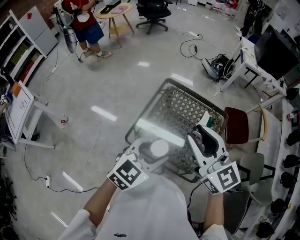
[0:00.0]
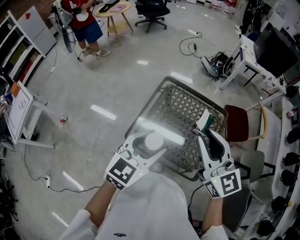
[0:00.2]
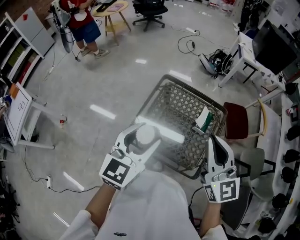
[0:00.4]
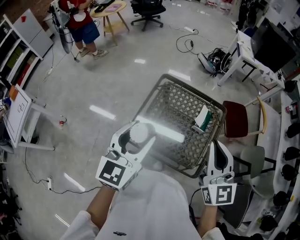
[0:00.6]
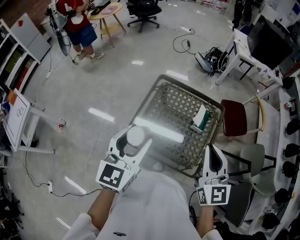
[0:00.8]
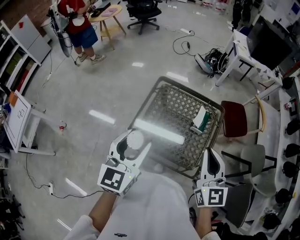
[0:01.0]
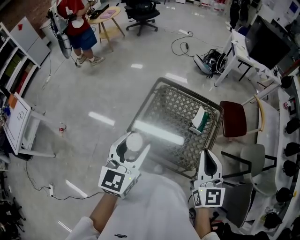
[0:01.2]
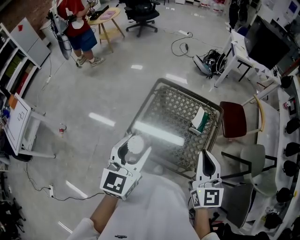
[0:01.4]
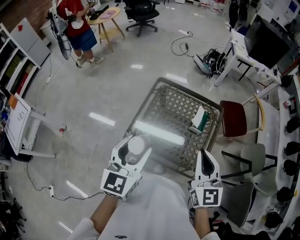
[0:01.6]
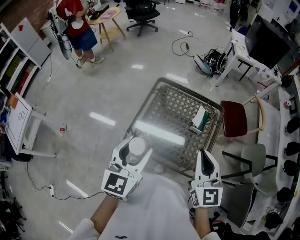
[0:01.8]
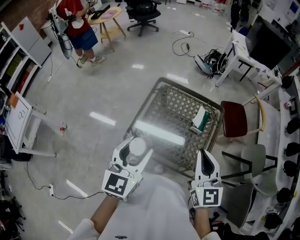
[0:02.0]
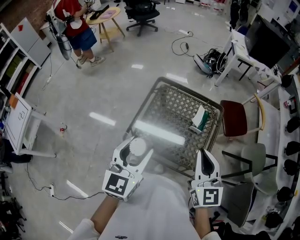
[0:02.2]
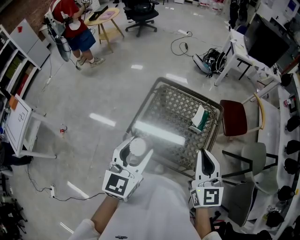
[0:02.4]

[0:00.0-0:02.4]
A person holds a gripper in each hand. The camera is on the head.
0:00.0 to 0:01.2: The right gripper is displaced to the right, downward and backward by approximately 15 cm, swivels approximately 30 degrees, and closes up, while the left gripper goes roughly 5 cm to the left, and swivels about 30 degrees.
0:01.2 to 0:02.4: The grippers make only small movements.

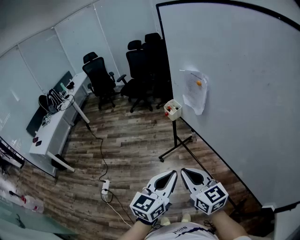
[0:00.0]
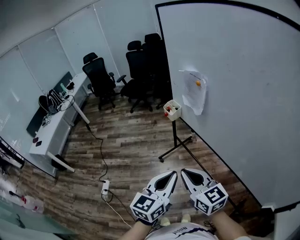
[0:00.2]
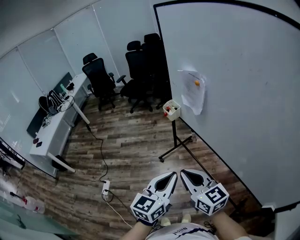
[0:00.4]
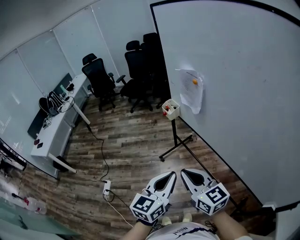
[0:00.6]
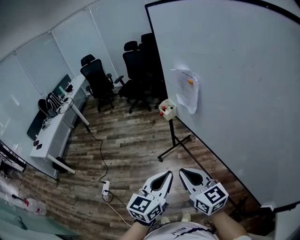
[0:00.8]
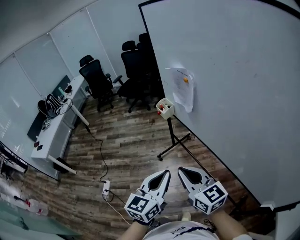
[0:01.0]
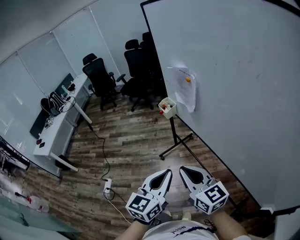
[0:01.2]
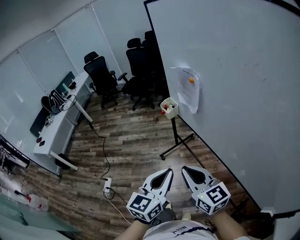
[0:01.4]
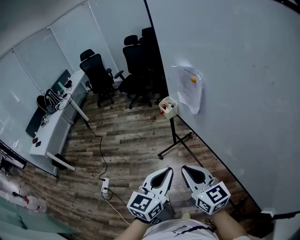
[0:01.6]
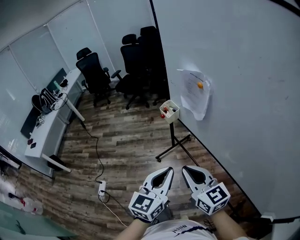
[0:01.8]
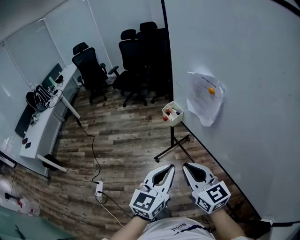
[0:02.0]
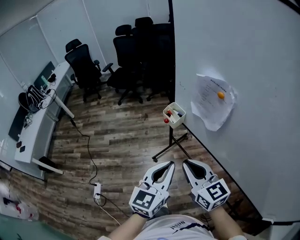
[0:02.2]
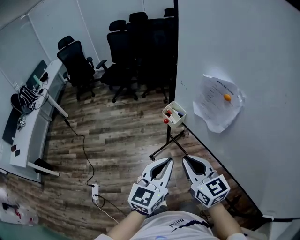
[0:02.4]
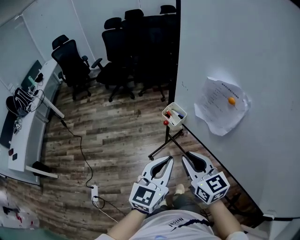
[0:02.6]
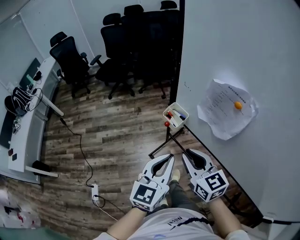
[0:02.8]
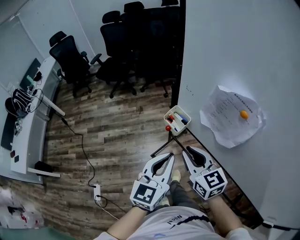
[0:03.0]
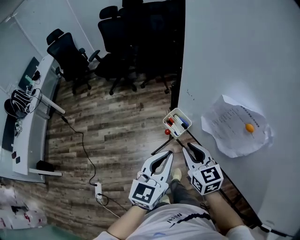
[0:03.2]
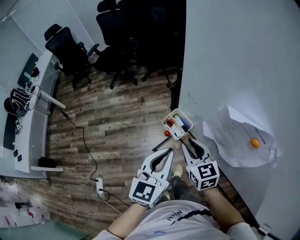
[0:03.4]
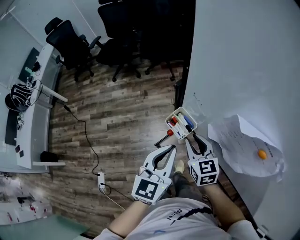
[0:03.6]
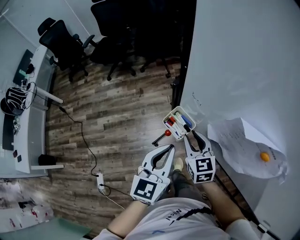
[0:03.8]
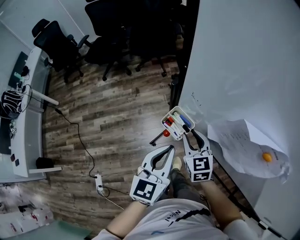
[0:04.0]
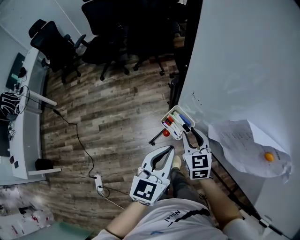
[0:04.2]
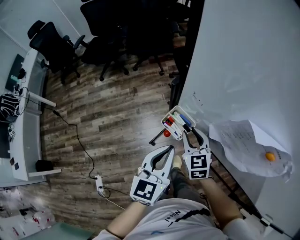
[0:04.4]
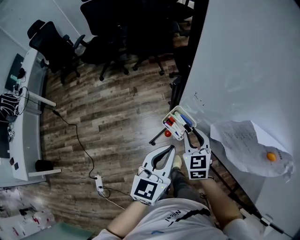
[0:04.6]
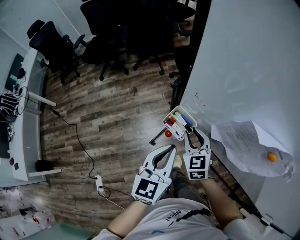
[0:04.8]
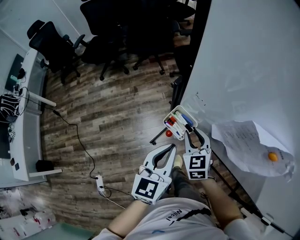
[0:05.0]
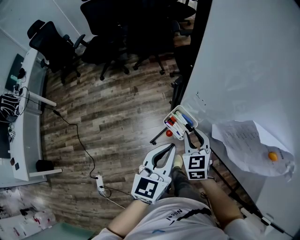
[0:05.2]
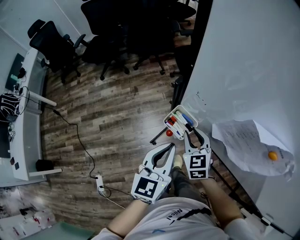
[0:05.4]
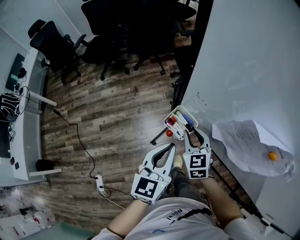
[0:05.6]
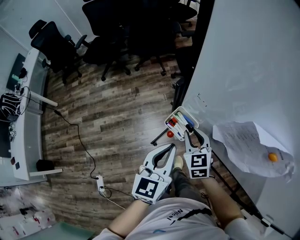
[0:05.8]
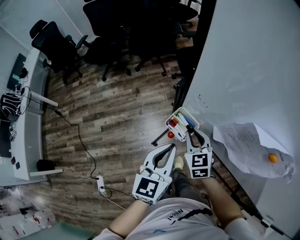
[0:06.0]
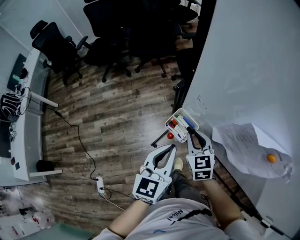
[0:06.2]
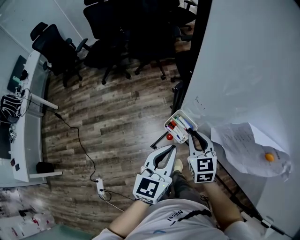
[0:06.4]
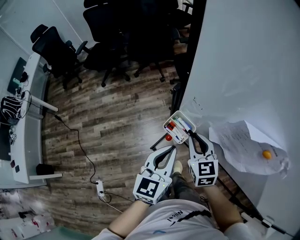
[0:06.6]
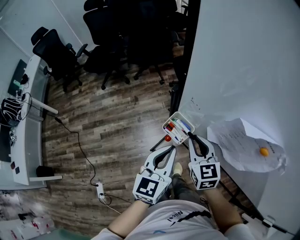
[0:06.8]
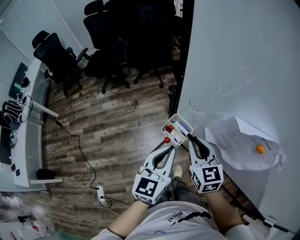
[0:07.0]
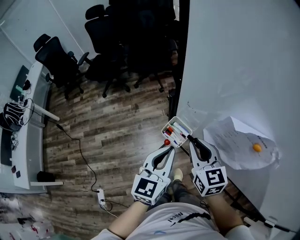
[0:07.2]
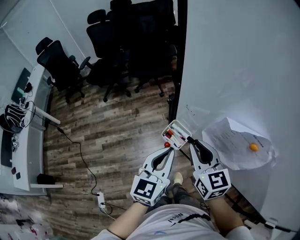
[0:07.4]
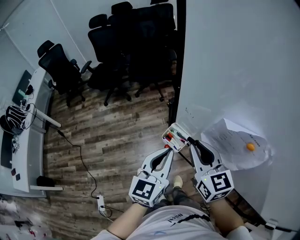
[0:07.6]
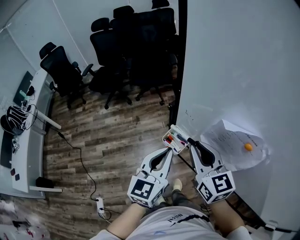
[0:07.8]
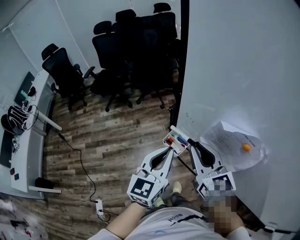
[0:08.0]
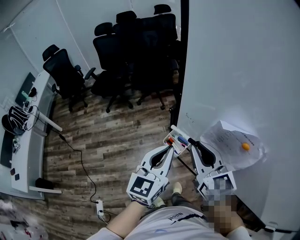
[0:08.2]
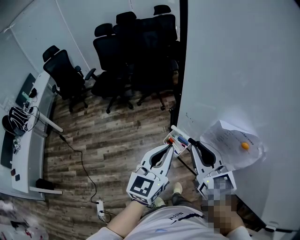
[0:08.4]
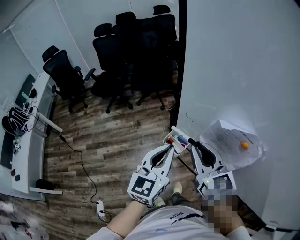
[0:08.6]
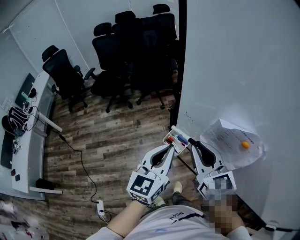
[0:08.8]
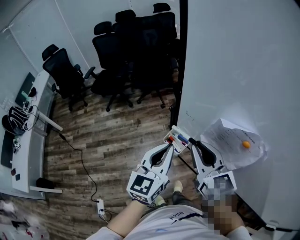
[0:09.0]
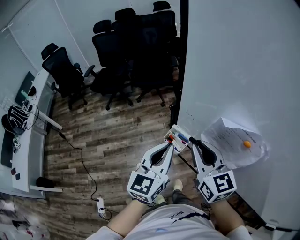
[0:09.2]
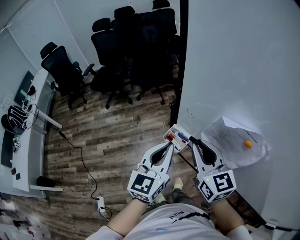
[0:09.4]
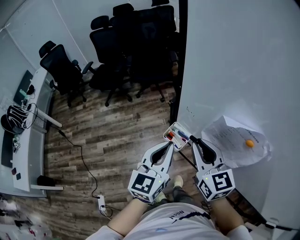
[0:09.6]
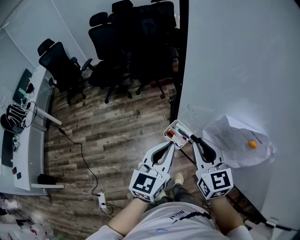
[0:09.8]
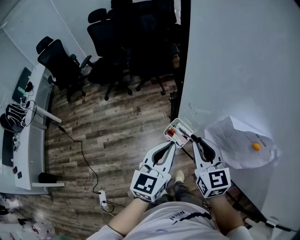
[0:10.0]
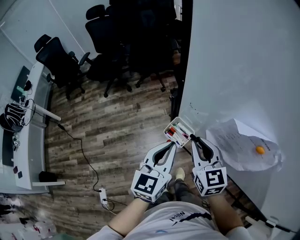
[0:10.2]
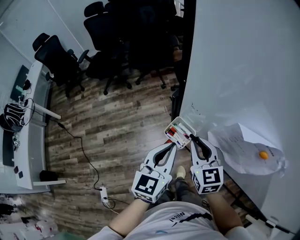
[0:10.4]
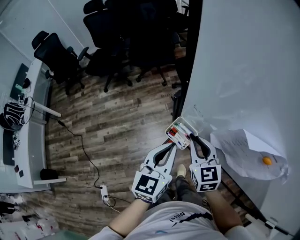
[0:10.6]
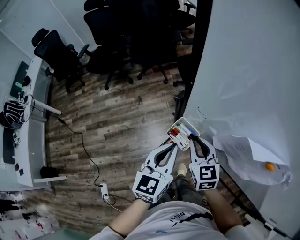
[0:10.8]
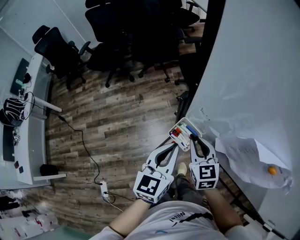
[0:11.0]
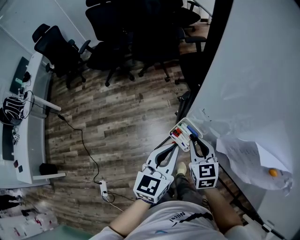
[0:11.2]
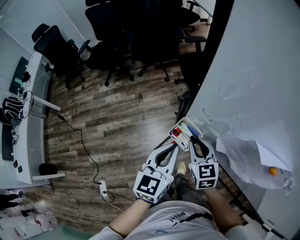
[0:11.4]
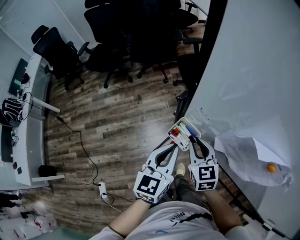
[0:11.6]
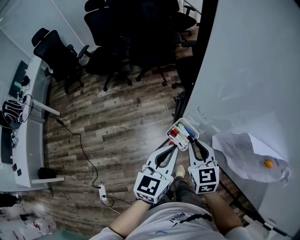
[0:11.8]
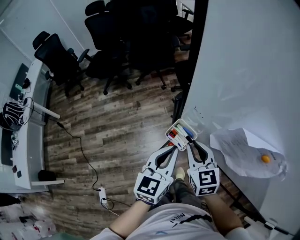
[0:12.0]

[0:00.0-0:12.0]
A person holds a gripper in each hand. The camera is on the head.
0:00.0 to 0:01.6: The left gripper moves approximately 5 cm; the right gripper ends up some 5 cm from where it was.
0:01.6 to 0:03.0: The two grippers go roughly 35 cm forward.
0:03.0 to 0:04.4: The right gripper goes some 20 cm forward and downward, and turns by about 20 degrees. The left gripper goes some 15 cm forward and downward.
0:04.4 to 0:06.0: The grippers make only small movements.
0:06.0 to 0:07.6: The left gripper shifts roughly 5 cm upward. Meanwhile the right gripper heads upward, covering about 20 cm, and rotates roughly 20 degrees.
0:07.6 to 0:09.0: The grippers make only small movements.
0:09.0 to 0:10.4: The right gripper moves downward, approximately 15 cm, while the left gripper goes approximately 10 cm downward.
0:10.4 to 0:12.0: The right gripper travels downward and back again, some 10 cm each way.

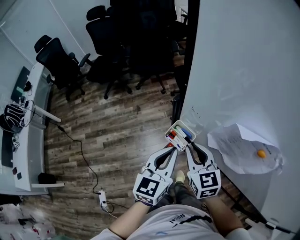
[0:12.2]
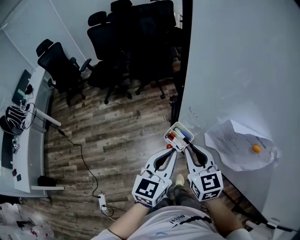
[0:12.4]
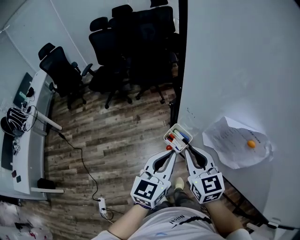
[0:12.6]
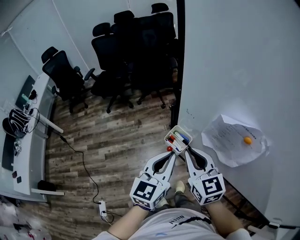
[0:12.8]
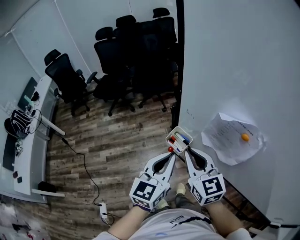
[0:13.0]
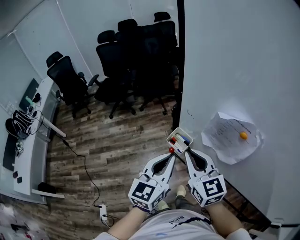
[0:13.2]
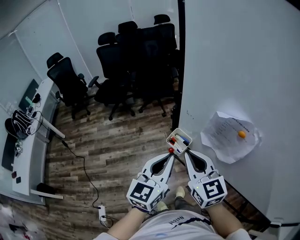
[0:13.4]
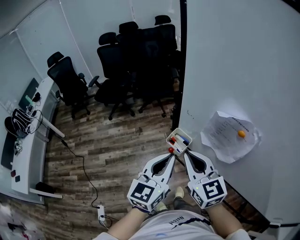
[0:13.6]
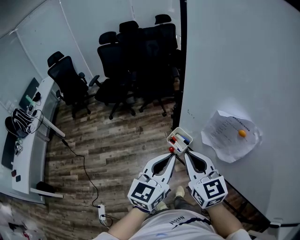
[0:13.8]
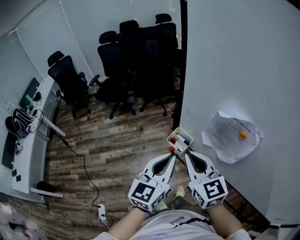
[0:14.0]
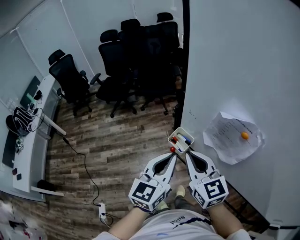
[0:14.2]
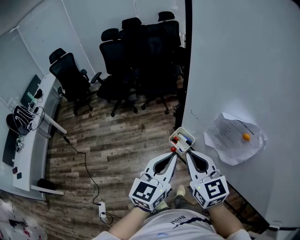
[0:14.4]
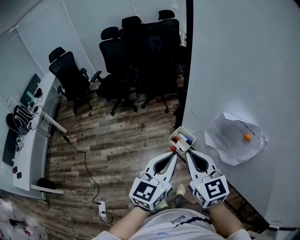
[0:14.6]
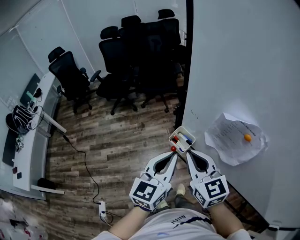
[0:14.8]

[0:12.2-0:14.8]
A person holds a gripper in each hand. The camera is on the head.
0:12.2 to 0:13.4: The two grippers go roughly 15 cm upward and backward.
0:13.4 to 0:14.8: The grippers move only a little.

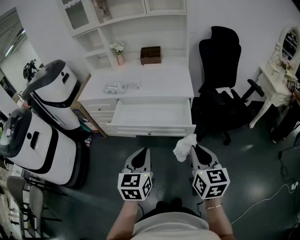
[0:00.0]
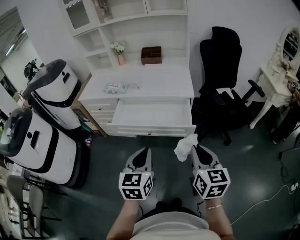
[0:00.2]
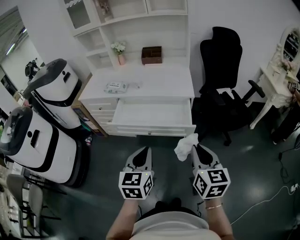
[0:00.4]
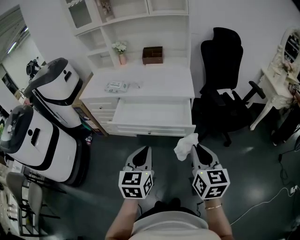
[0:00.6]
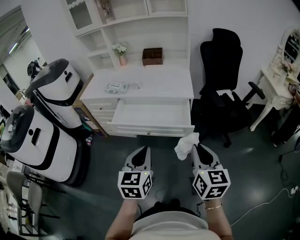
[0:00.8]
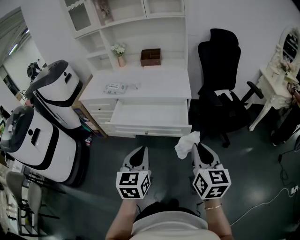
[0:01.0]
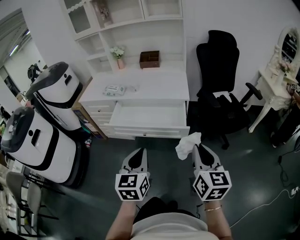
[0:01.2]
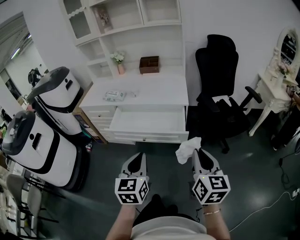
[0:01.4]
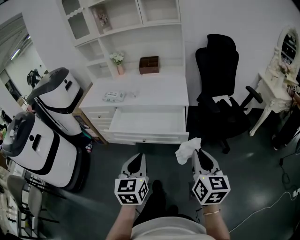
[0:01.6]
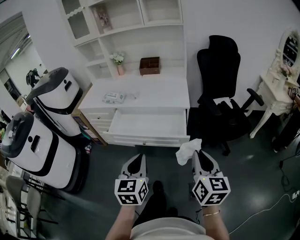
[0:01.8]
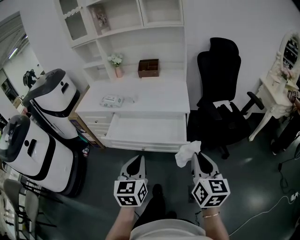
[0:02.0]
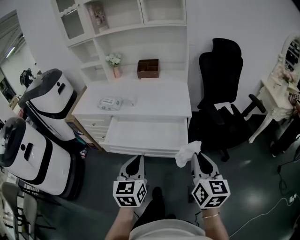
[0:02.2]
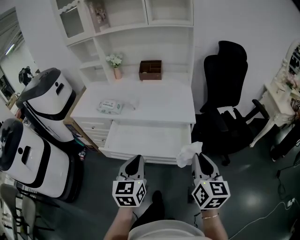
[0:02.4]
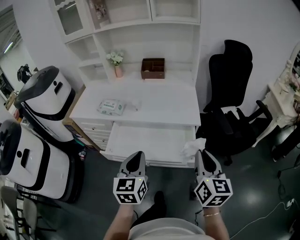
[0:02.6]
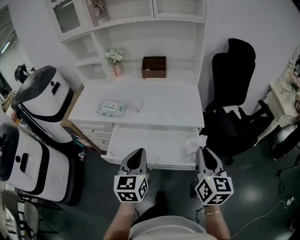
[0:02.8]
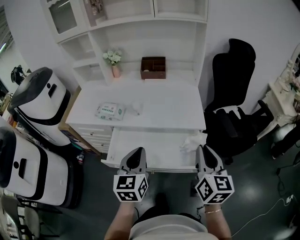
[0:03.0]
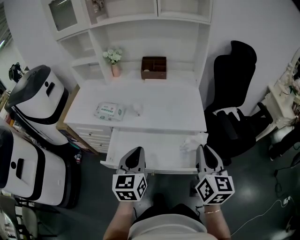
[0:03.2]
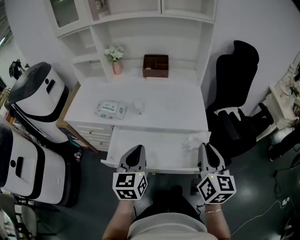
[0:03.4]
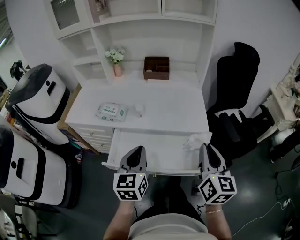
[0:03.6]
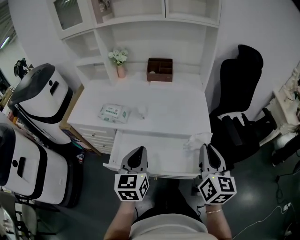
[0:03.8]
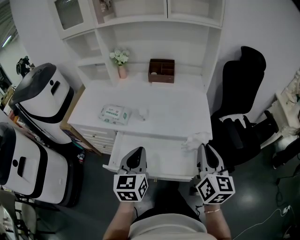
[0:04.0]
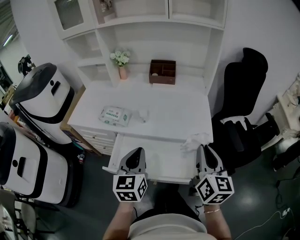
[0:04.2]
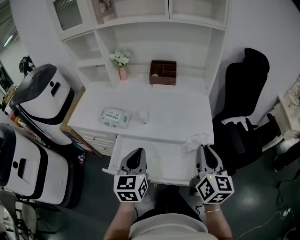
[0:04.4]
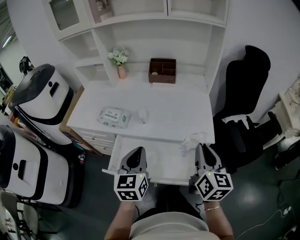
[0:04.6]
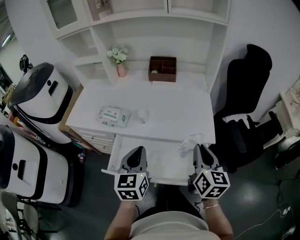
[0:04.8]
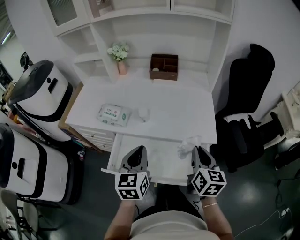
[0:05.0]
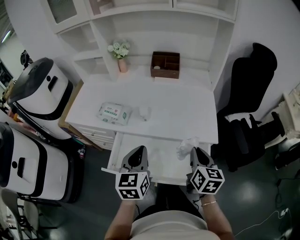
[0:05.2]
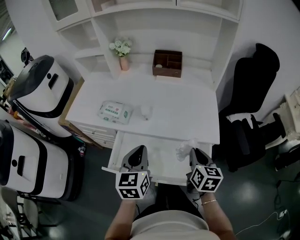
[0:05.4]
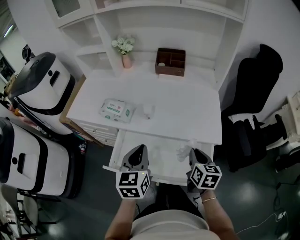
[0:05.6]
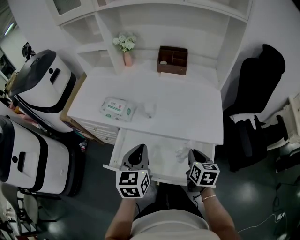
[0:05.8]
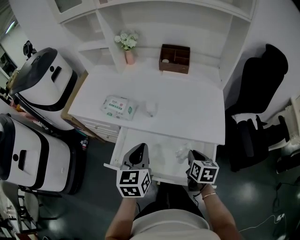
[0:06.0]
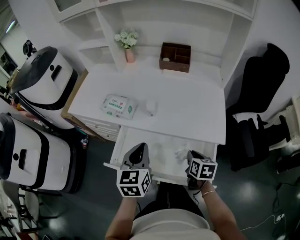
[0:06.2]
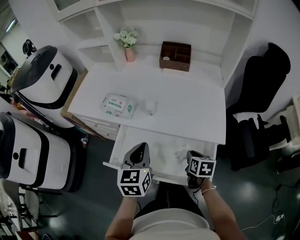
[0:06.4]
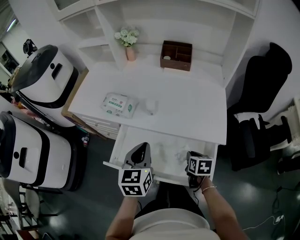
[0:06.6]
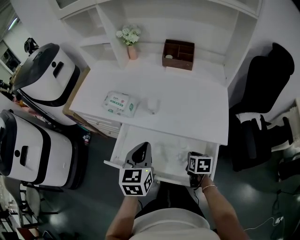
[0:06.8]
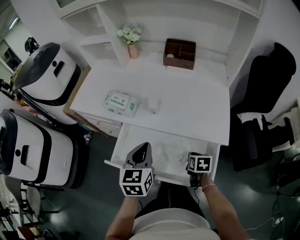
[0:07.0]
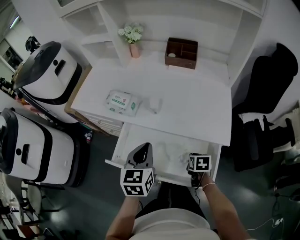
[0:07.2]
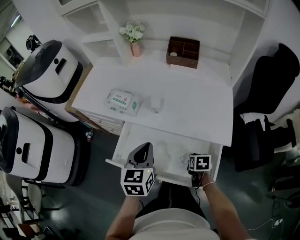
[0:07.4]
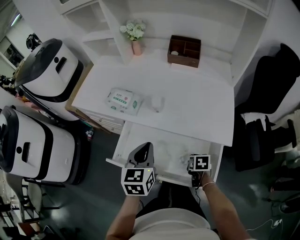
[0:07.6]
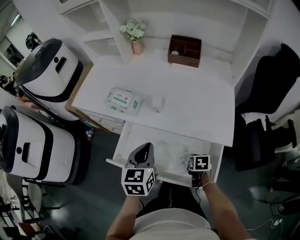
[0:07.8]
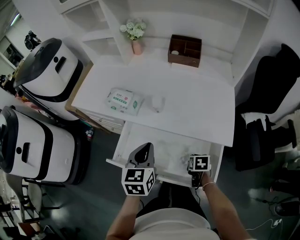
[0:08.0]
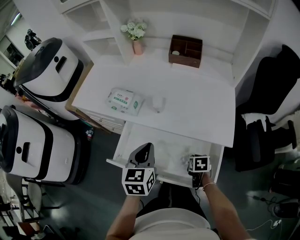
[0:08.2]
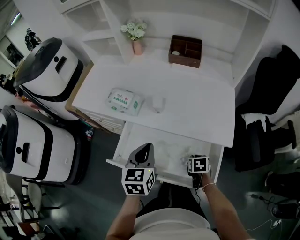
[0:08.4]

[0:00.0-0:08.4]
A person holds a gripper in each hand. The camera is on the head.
0:00.0 to 0:01.4: The right gripper shifts about 5 cm to the right.
0:01.4 to 0:02.8: The two grippers go approximately 25 cm forward.
0:02.8 to 0:04.2: The two grippers go about 10 cm forward.
0:04.2 to 0:05.6: The right gripper travels downward and forward by some 20 cm, and rotates about 30 degrees; the left gripper shifts by about 5 cm.
0:05.6 to 0:07.0: The right gripper travels downward by roughly 15 cm, and changes its angle by roughly 30 degrees.
0:07.0 to 0:08.4: The grippers stay close to where they were, moving slightly.
